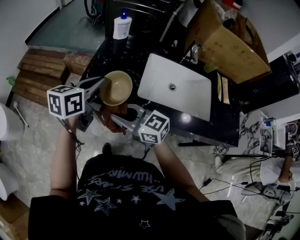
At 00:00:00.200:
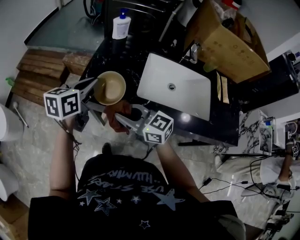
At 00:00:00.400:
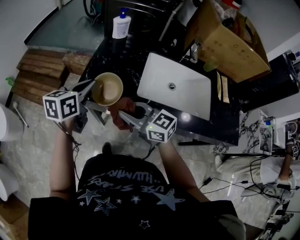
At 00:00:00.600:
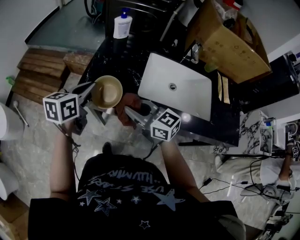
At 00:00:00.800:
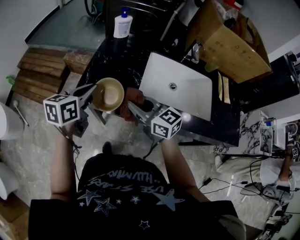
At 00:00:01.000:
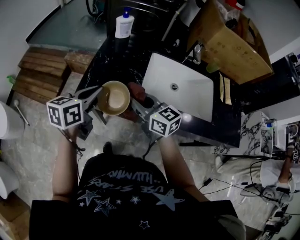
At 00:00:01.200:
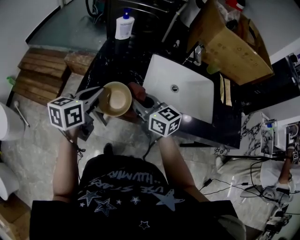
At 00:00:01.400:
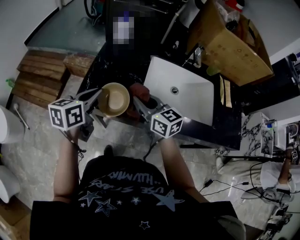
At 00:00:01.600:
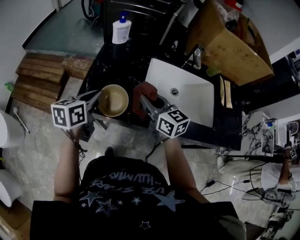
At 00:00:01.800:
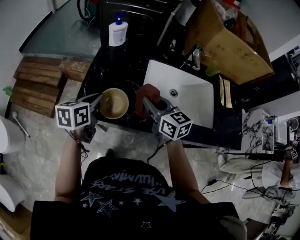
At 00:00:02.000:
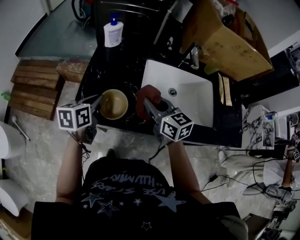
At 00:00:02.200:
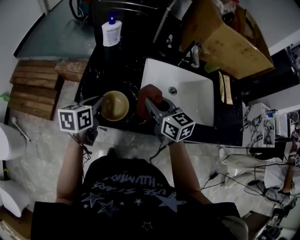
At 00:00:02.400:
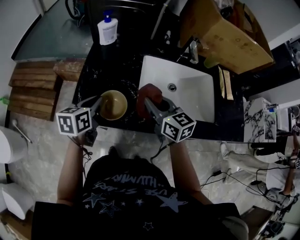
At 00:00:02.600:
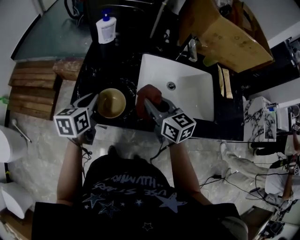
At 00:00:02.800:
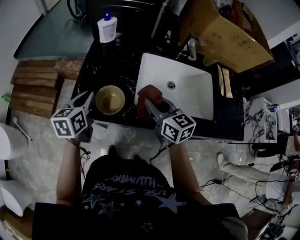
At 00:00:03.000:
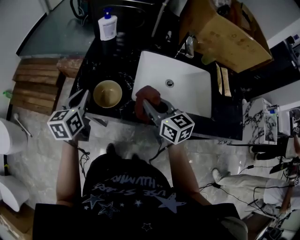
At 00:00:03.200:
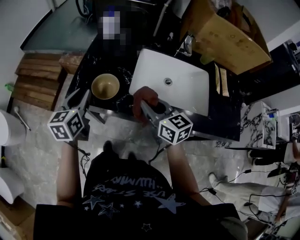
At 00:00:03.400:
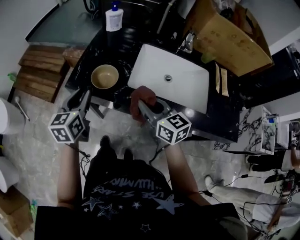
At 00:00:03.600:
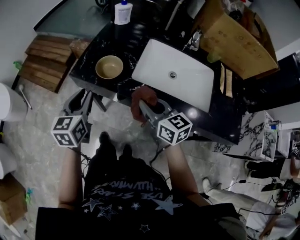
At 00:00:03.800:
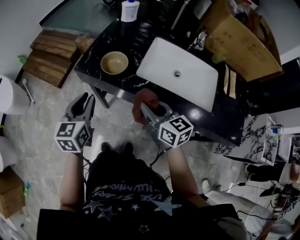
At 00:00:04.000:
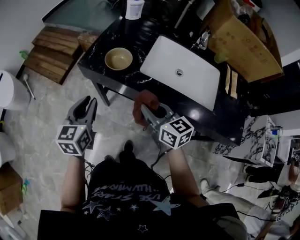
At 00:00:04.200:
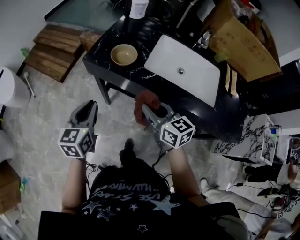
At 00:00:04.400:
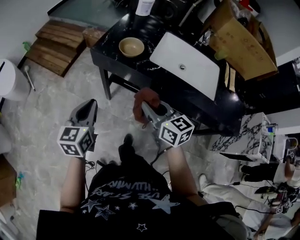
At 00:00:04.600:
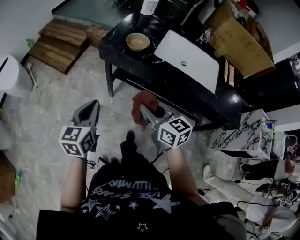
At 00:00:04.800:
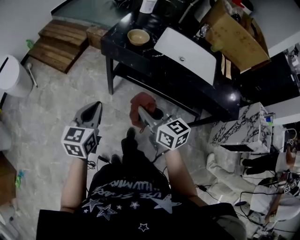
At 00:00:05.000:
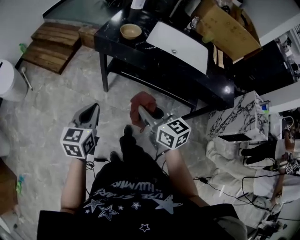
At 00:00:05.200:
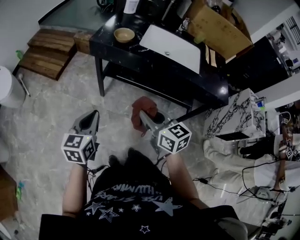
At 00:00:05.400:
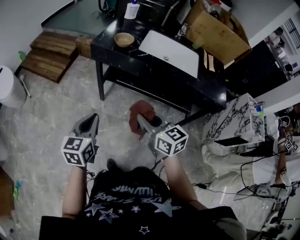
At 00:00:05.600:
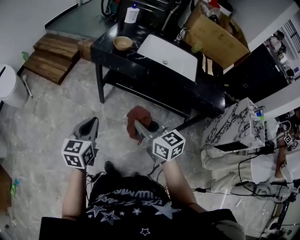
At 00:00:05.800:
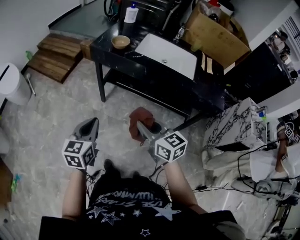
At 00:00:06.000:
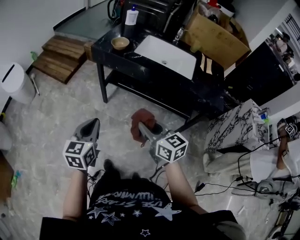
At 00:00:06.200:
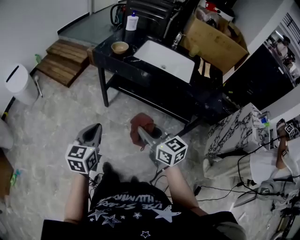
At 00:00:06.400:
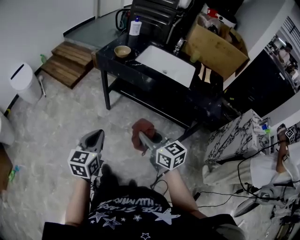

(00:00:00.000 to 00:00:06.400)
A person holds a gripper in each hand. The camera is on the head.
00:00:00.000 - 00:00:01.600: The left gripper moves downward, about 5 cm; the right gripper goes some 15 cm to the right and forward, and swivels about 30 degrees.
00:00:01.600 - 00:00:03.200: The right gripper travels backward and to the right by about 10 cm.
00:00:03.200 - 00:00:04.800: The right gripper shifts about 35 cm backward and to the left. The left gripper travels backward by some 35 cm, and closes up.
00:00:04.800 - 00:00:06.400: Both grippers move backward and to the right, approximately 25 cm.

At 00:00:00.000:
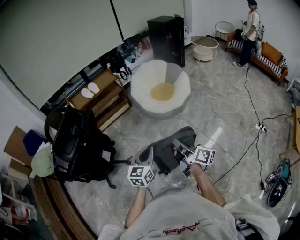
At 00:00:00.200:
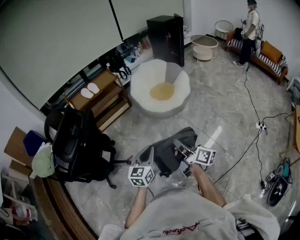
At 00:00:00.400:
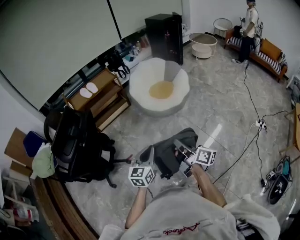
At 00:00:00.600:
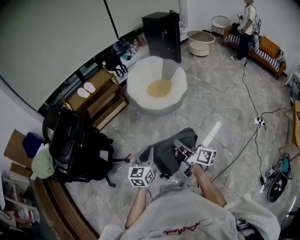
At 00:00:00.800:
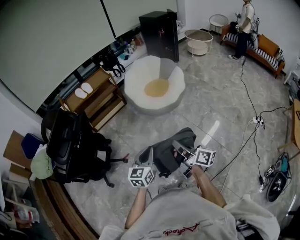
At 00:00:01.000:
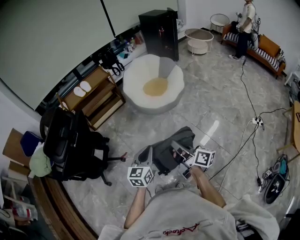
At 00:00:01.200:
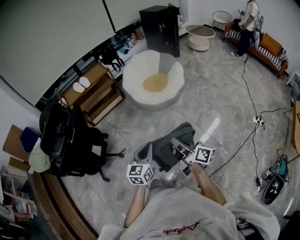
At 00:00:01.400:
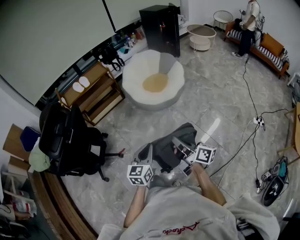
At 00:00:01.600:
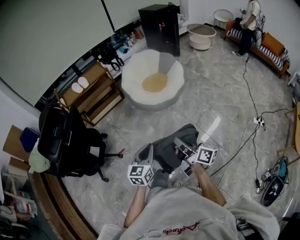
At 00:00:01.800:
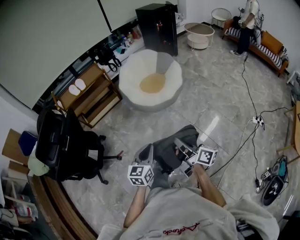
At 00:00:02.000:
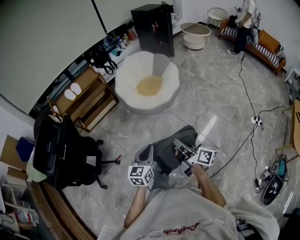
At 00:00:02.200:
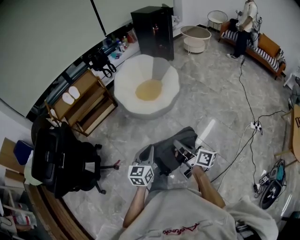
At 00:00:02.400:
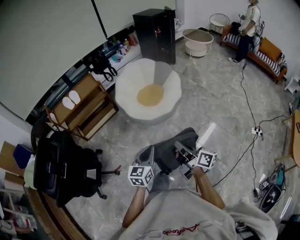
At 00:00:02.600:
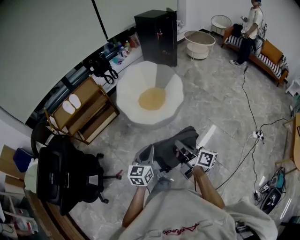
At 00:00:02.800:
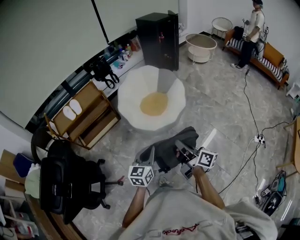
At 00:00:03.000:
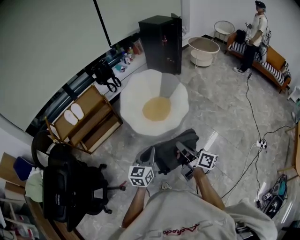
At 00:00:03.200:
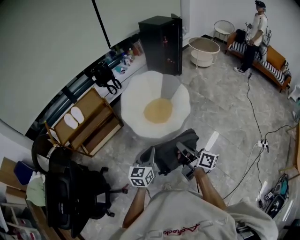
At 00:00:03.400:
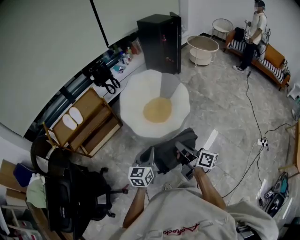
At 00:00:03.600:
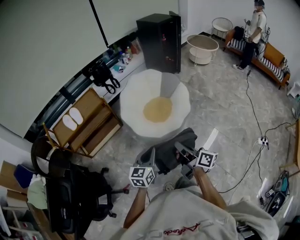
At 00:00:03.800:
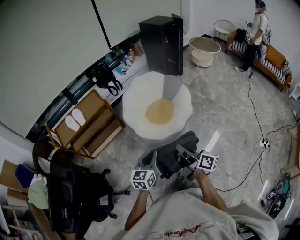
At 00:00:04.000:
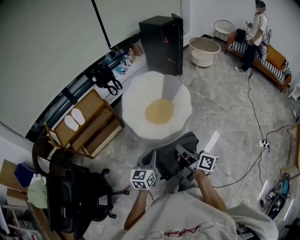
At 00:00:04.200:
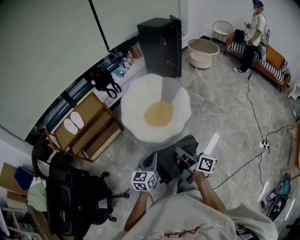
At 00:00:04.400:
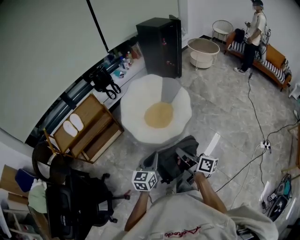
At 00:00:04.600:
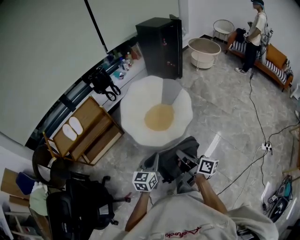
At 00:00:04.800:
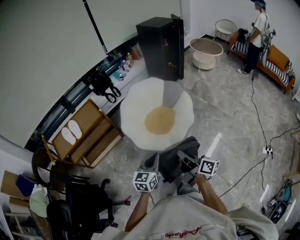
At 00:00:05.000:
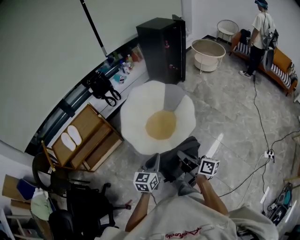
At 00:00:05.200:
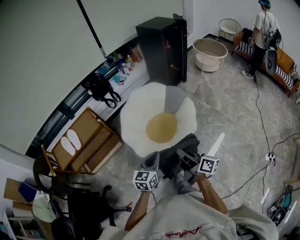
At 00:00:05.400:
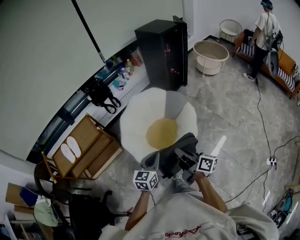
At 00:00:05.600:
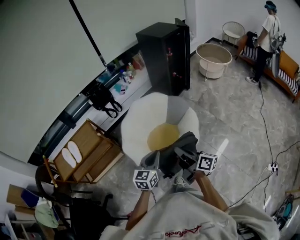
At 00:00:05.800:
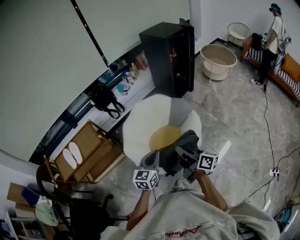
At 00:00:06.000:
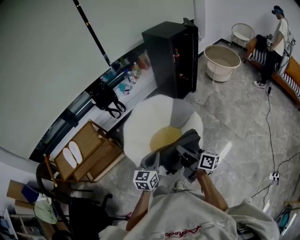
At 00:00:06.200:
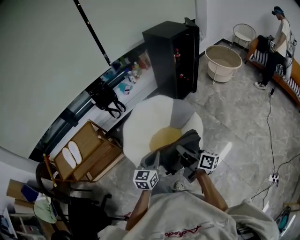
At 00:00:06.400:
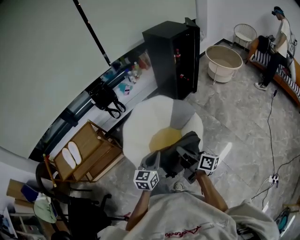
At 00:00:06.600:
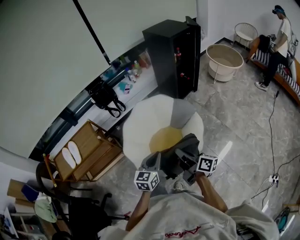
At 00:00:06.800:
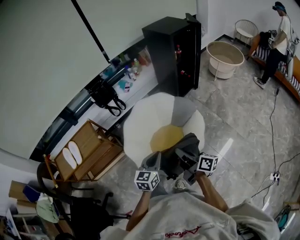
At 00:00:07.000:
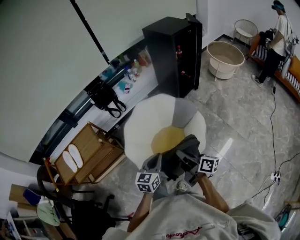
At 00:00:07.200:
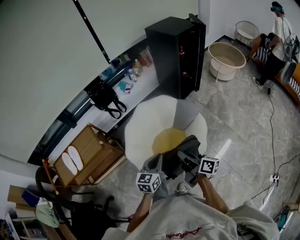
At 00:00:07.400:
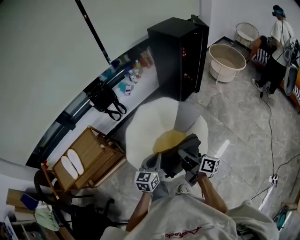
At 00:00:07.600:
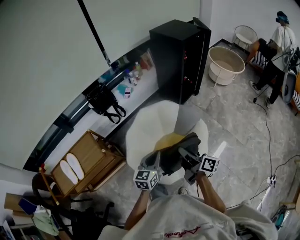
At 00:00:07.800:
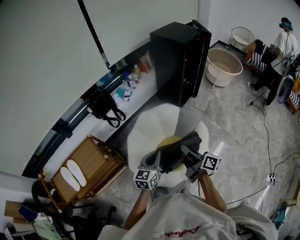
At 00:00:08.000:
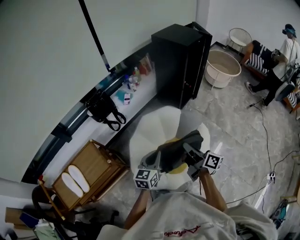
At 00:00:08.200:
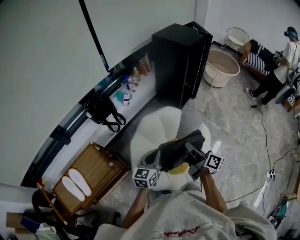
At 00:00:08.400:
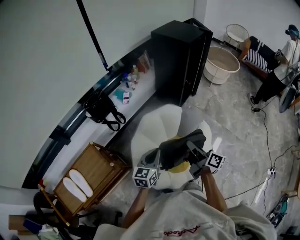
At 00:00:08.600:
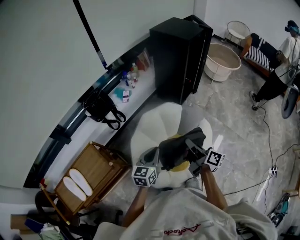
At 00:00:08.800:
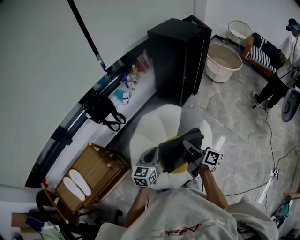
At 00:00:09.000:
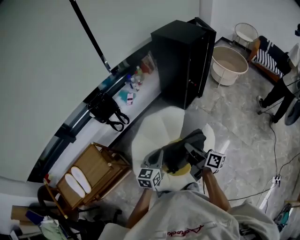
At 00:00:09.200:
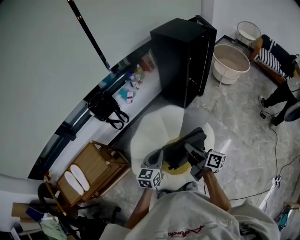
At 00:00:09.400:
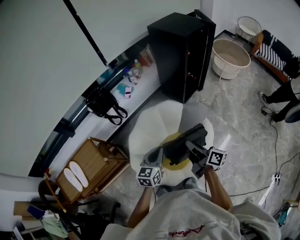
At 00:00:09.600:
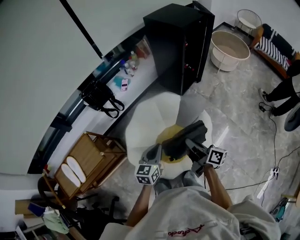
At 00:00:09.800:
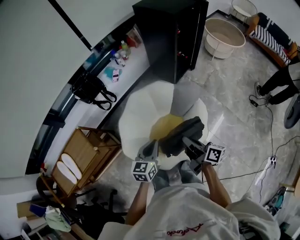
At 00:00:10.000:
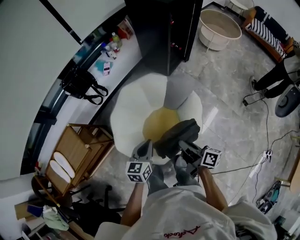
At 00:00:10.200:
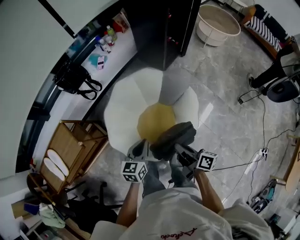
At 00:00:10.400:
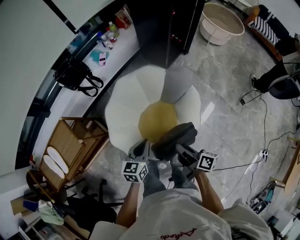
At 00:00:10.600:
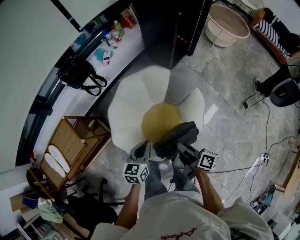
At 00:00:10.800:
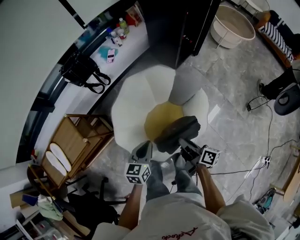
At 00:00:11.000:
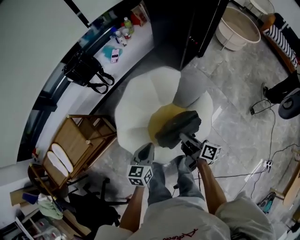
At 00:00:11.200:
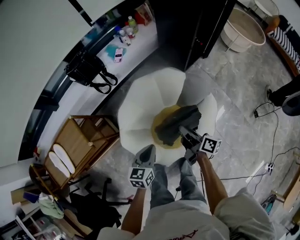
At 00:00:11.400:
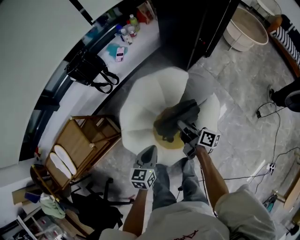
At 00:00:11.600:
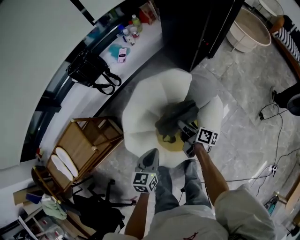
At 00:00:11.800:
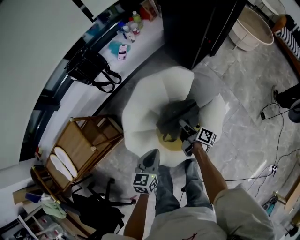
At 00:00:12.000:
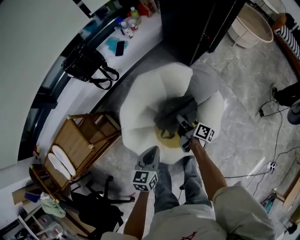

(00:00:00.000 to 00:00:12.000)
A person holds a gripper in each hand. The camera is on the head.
00:00:00.000 - 00:00:01.600: The grippers both shift to the right by roughly 10 cm.
00:00:01.600 - 00:00:03.000: The grippers both shift forward by approximately 35 cm.
00:00:03.000 - 00:00:04.400: The grippers both shift forward by about 5 cm.
00:00:04.400 - 00:00:06.000: Both grippers travel together forward, about 40 cm.
00:00:06.000 - 00:00:07.600: Both grippers move forward and to the left, roughly 15 cm.
00:00:07.600 - 00:00:09.000: The two grippers go some 10 cm forward.
00:00:09.000 - 00:00:10.400: The left gripper shifts about 10 cm downward, while the right gripper shifts approximately 20 cm downward, backward and to the right.
00:00:10.400 - 00:00:12.000: The right gripper travels forward and downward by roughly 30 cm; the left gripper is displaced downward, to the left and forward by about 10 cm.

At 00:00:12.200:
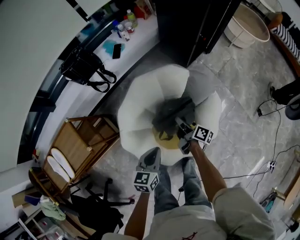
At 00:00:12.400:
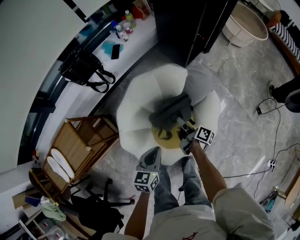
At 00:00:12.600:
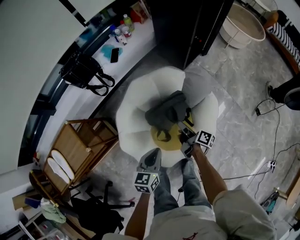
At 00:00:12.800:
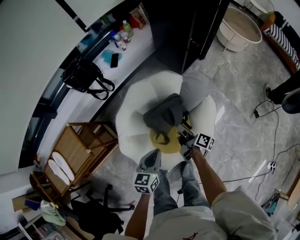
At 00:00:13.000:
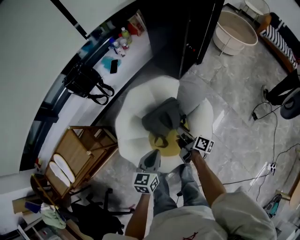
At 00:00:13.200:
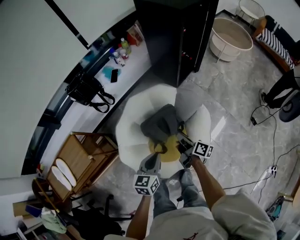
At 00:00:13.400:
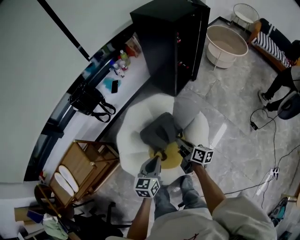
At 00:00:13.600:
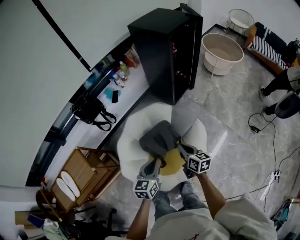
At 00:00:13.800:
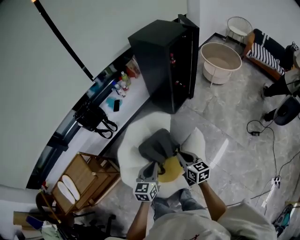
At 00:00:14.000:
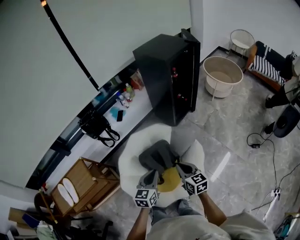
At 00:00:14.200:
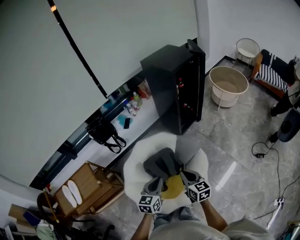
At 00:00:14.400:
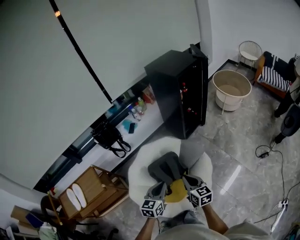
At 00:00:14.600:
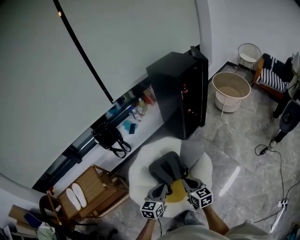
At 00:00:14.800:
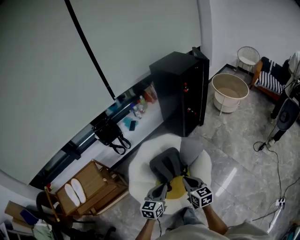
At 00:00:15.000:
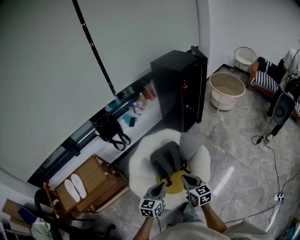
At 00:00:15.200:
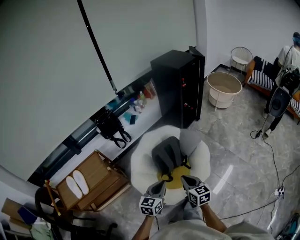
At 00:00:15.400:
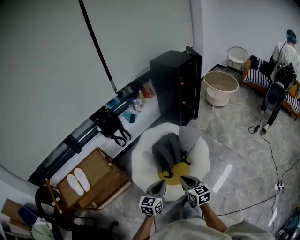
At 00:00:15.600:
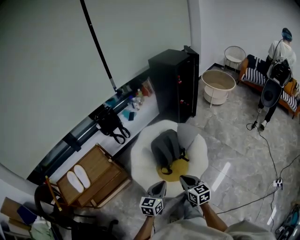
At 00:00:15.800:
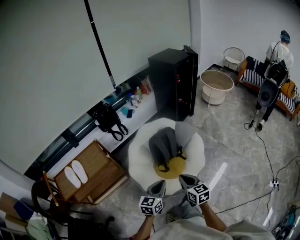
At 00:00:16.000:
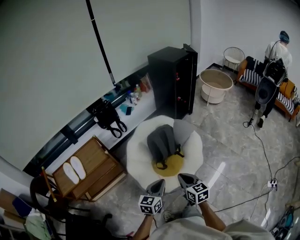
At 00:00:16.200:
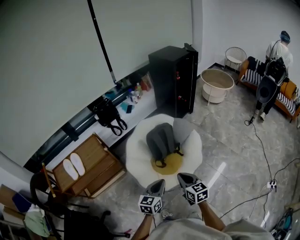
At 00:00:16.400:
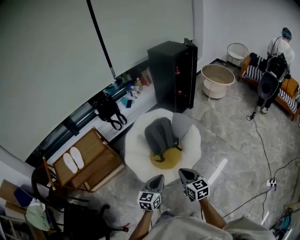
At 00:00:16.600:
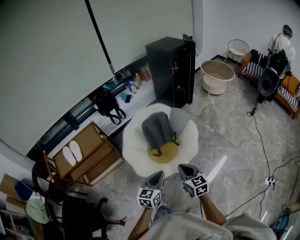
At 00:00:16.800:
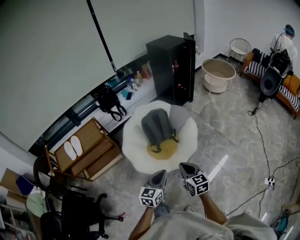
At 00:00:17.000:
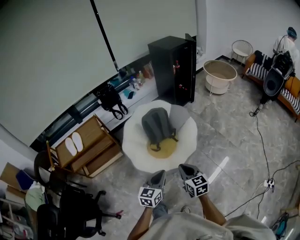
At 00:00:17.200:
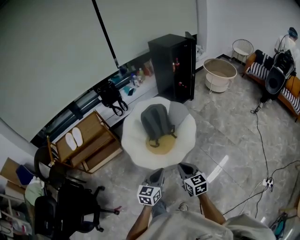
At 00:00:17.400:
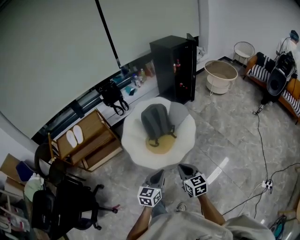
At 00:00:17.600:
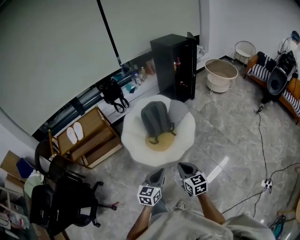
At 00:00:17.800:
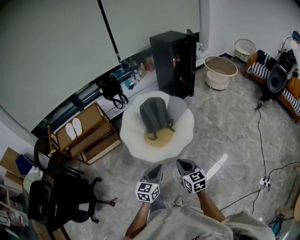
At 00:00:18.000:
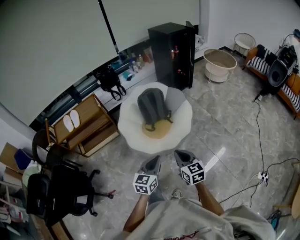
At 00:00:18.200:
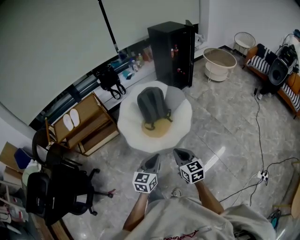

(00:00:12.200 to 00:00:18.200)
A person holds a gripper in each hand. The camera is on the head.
00:00:12.200 - 00:00:13.800: The left gripper is displaced upward and to the right by about 15 cm; the right gripper moves upward, to the right and backward, roughly 25 cm, twists some 50 degrees counterclockwise, seen from behind, and opens, then closes again.
00:00:13.800 - 00:00:15.200: The right gripper goes approximately 25 cm backward and to the left. Meanwhile the left gripper is displaced backward by some 20 cm.
00:00:15.200 - 00:00:16.600: Both grippers move backward and to the right, some 20 cm.
00:00:16.600 - 00:00:18.200: The grippers both shift backward and to the right by about 15 cm.
